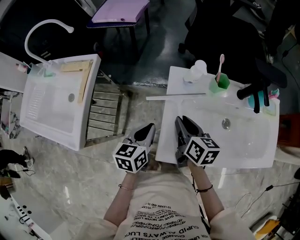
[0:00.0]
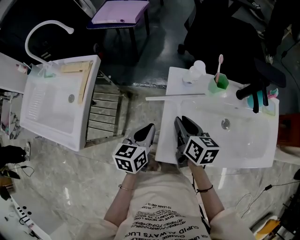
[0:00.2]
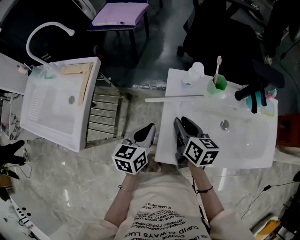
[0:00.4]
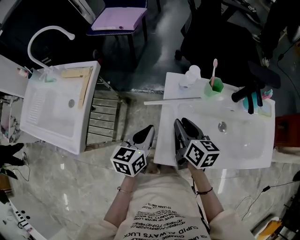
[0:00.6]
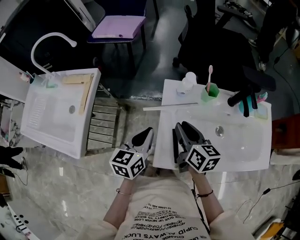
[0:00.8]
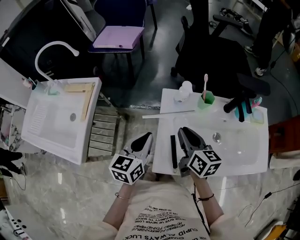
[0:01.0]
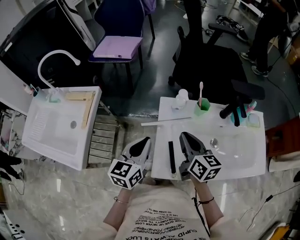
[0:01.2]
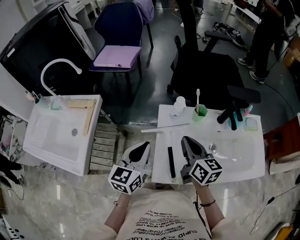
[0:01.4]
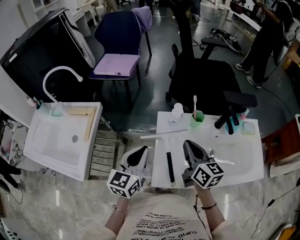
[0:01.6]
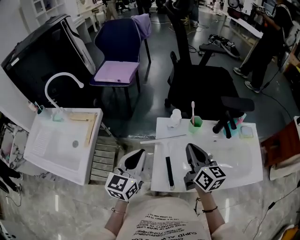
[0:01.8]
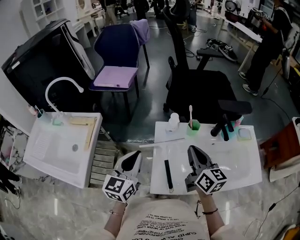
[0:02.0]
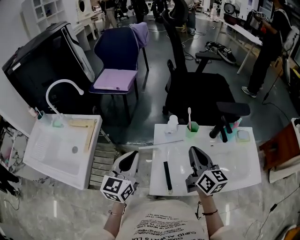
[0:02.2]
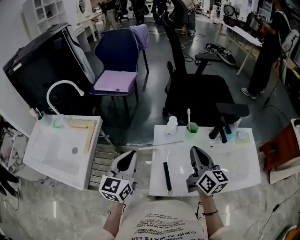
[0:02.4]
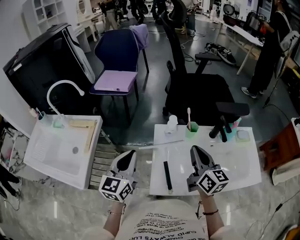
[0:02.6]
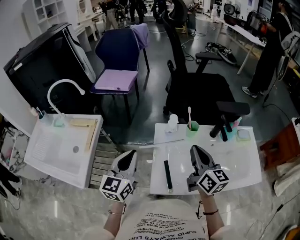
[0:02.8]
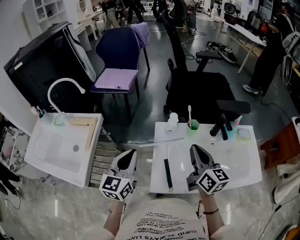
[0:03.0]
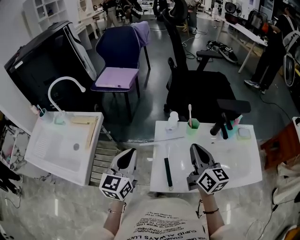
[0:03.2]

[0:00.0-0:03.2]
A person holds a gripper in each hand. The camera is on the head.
0:00.0 to 0:01.6: The right gripper goes some 15 cm upward and to the right, rotates approximately 20 degrees, and closes its fingers. The left gripper heads upward, covering roughly 15 cm, and swivels approximately 30 degrees.
0:01.6 to 0:03.2: The right gripper moves approximately 5 cm.

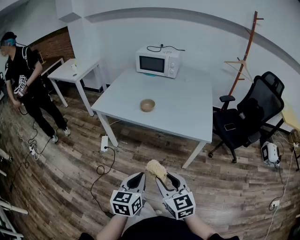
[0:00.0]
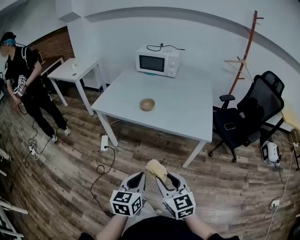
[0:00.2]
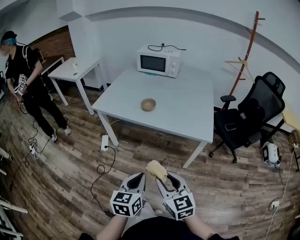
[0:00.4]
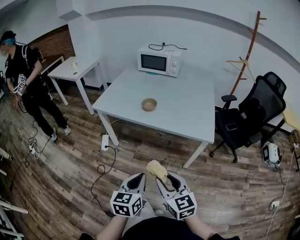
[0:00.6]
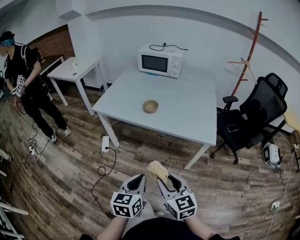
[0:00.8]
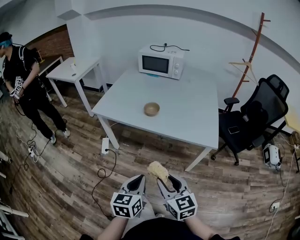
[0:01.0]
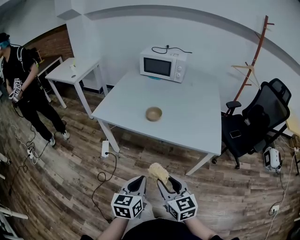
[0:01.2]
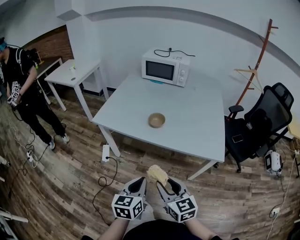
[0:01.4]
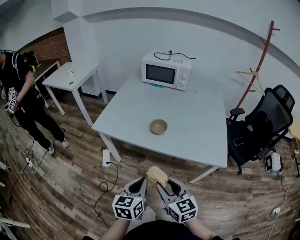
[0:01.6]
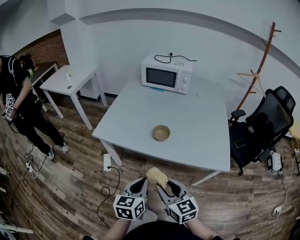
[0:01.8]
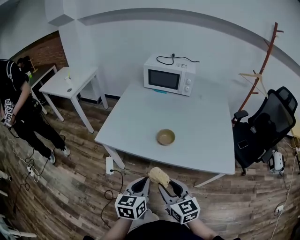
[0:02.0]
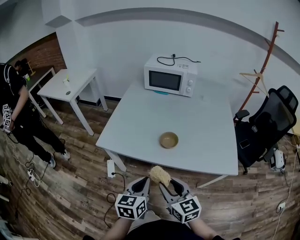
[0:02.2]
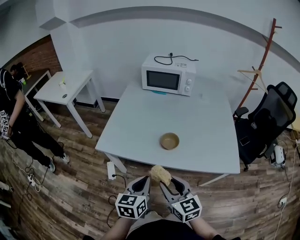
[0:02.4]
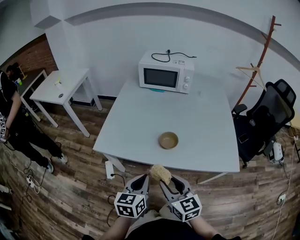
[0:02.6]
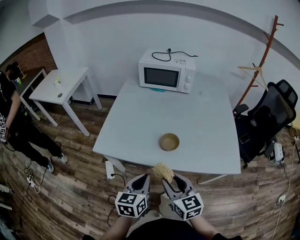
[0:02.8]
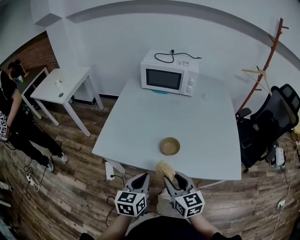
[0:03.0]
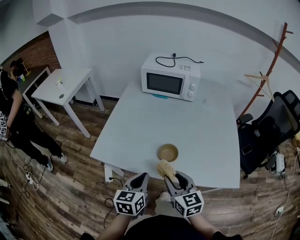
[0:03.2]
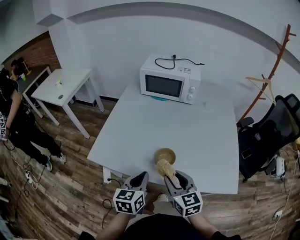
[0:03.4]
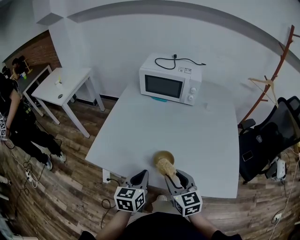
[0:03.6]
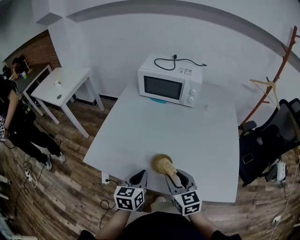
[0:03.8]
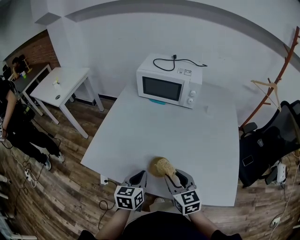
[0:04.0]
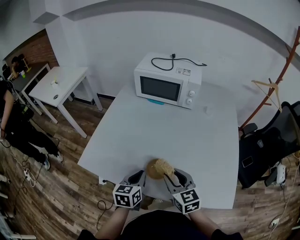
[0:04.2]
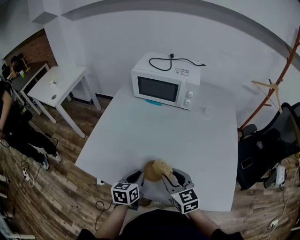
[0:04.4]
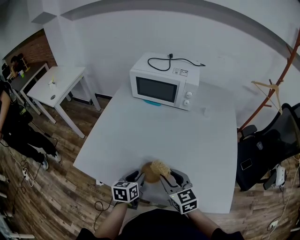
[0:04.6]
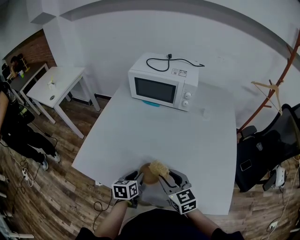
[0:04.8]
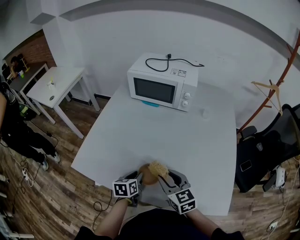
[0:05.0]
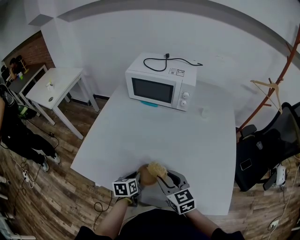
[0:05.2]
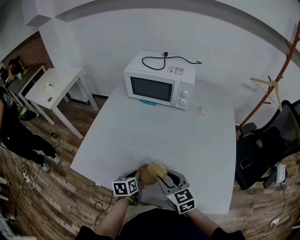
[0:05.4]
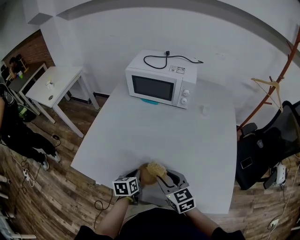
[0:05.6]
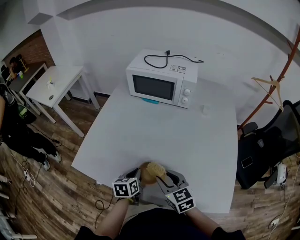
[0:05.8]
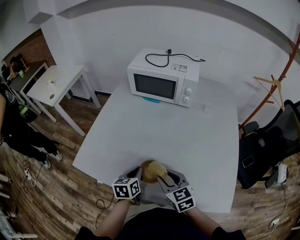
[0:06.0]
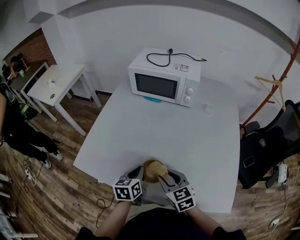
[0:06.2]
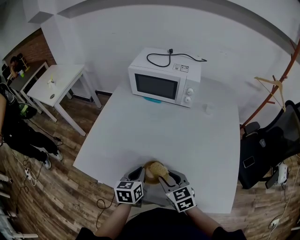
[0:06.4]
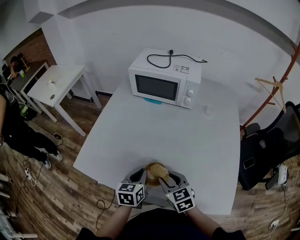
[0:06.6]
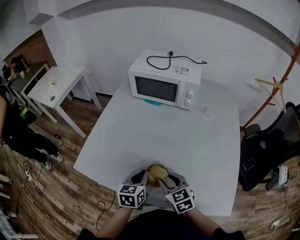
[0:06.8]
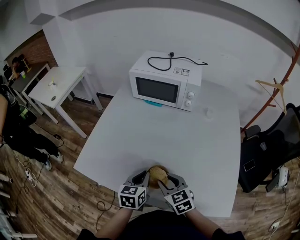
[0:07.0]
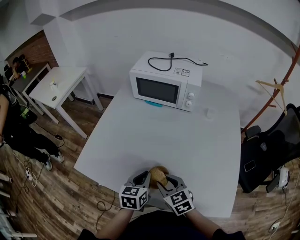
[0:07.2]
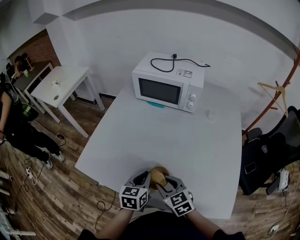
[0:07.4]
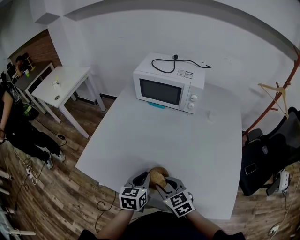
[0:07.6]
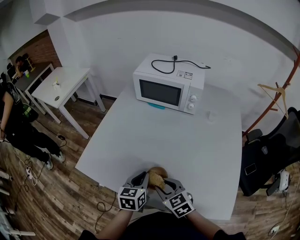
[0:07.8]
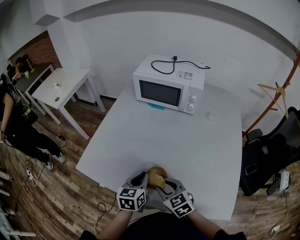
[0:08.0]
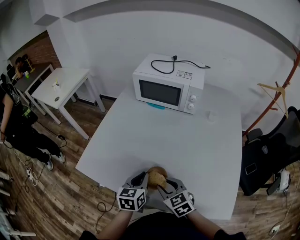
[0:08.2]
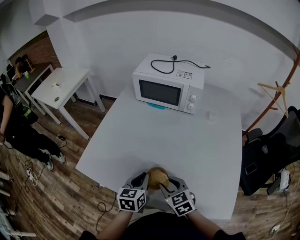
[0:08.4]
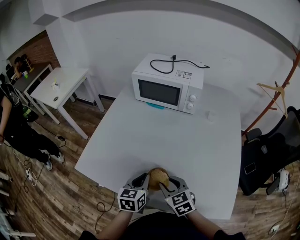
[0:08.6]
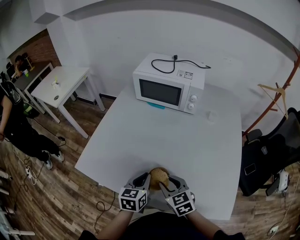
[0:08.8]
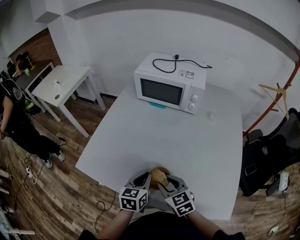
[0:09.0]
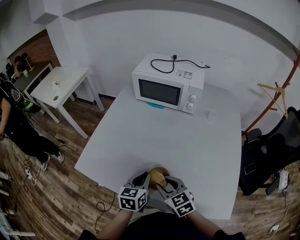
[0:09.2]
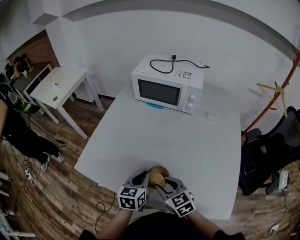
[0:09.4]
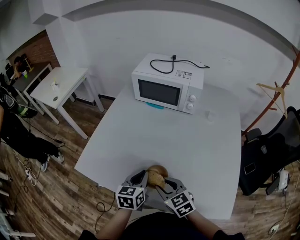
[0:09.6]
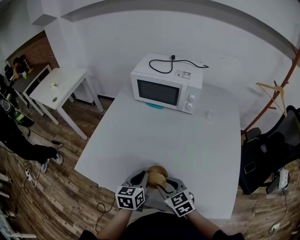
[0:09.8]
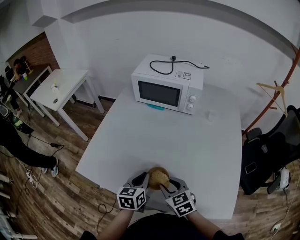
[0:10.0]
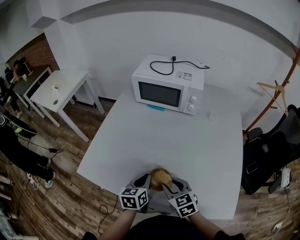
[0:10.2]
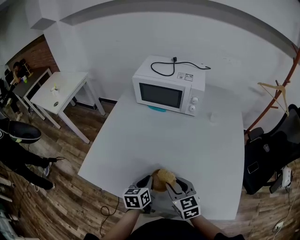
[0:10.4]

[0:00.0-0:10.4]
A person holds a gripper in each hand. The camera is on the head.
0:00.0 to 0:01.4: The left gripper heads forward and to the left, covering some 15 cm, while the right gripper heads forward, covering approximately 15 cm.
0:01.4 to 0:03.0: Both grippers move forward, some 25 cm.
0:03.0 to 0:04.4: The right gripper moves forward and to the right, roughly 20 cm, while the left gripper travels forward, downward and to the right by roughly 20 cm.
0:04.4 to 0:06.0: The left gripper opens, then closes once more.
0:06.0 to 0:07.4: The left gripper changes place by about 5 cm.
0:07.4 to 0:10.4: The grippers stay close to where they were, moving slightly.

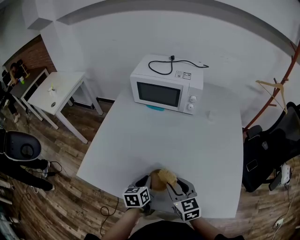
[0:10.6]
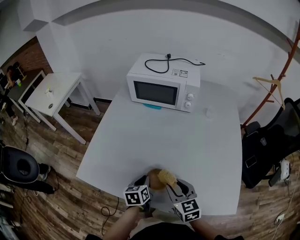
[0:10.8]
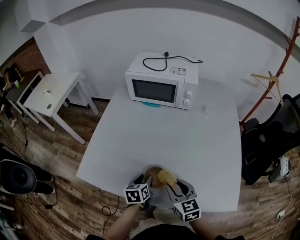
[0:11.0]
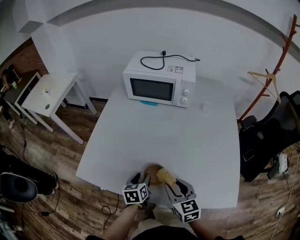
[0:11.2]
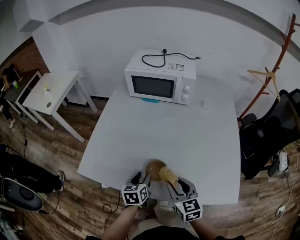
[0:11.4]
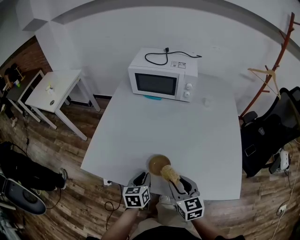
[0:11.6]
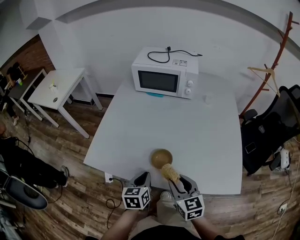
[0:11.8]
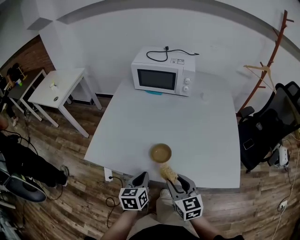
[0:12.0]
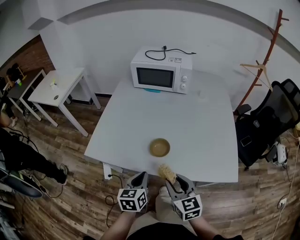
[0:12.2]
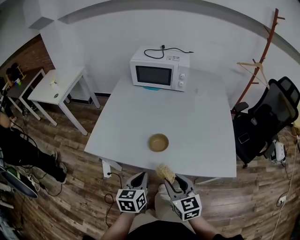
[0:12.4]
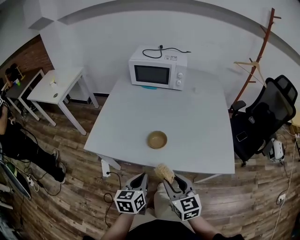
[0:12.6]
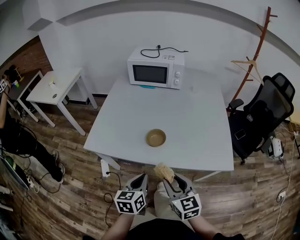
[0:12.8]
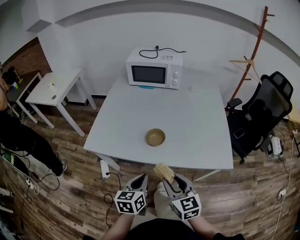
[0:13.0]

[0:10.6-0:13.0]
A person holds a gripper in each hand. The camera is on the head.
0:10.6 to 0:11.8: The two grippers go about 10 cm backward. The left gripper opens and closes again.
0:11.8 to 0:13.0: Both grippers travel together backward, about 15 cm.

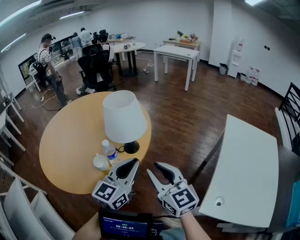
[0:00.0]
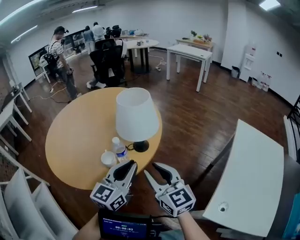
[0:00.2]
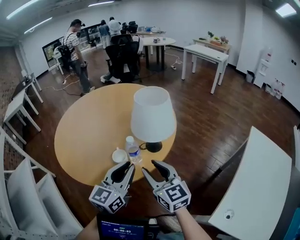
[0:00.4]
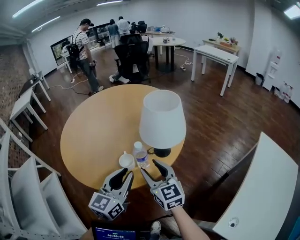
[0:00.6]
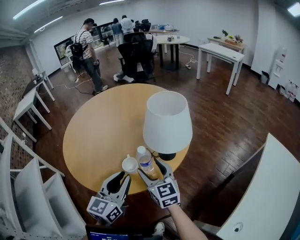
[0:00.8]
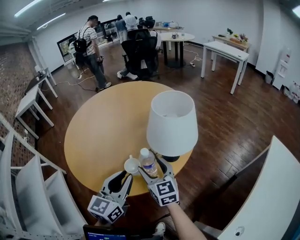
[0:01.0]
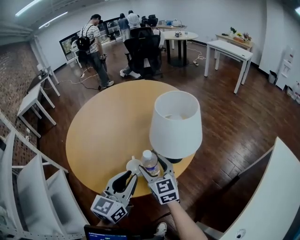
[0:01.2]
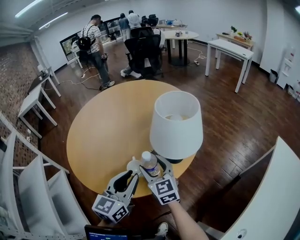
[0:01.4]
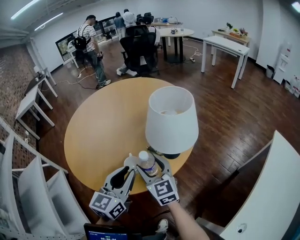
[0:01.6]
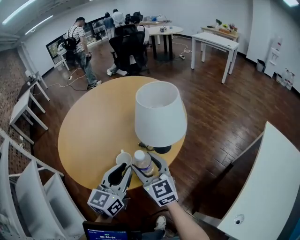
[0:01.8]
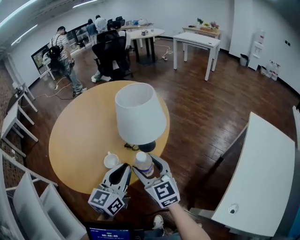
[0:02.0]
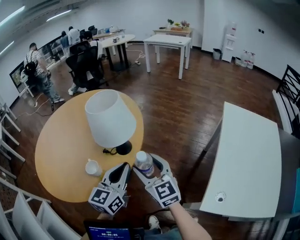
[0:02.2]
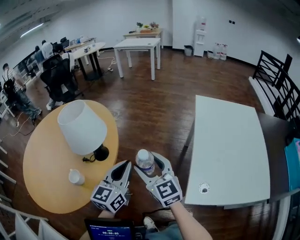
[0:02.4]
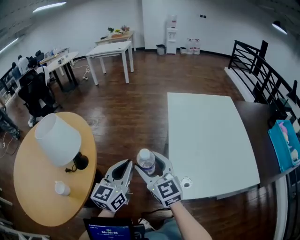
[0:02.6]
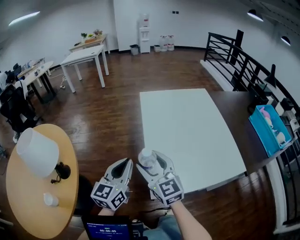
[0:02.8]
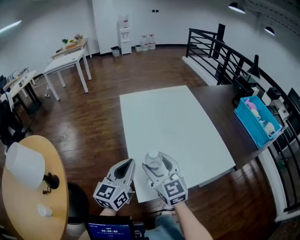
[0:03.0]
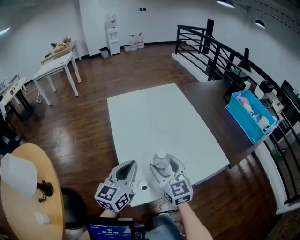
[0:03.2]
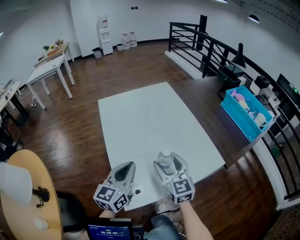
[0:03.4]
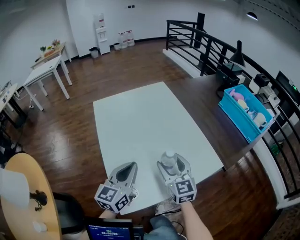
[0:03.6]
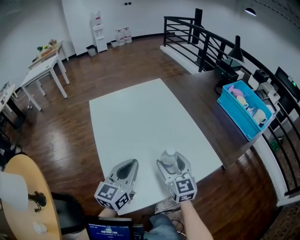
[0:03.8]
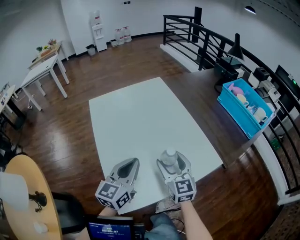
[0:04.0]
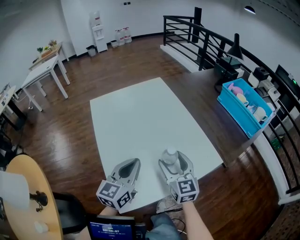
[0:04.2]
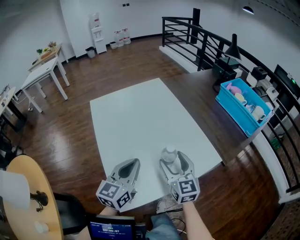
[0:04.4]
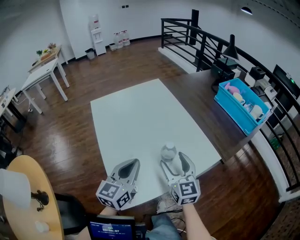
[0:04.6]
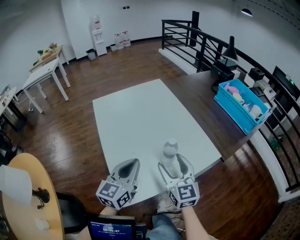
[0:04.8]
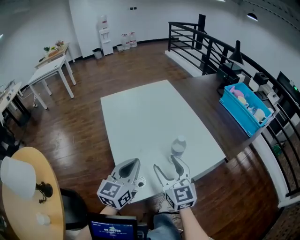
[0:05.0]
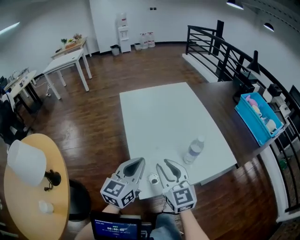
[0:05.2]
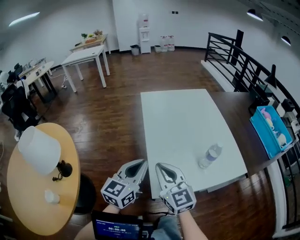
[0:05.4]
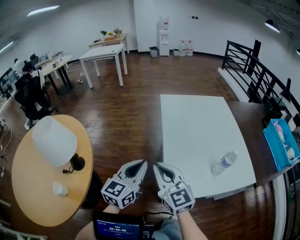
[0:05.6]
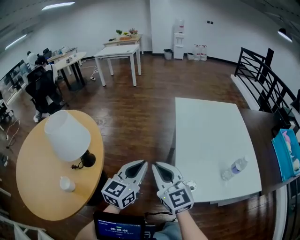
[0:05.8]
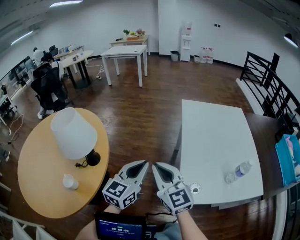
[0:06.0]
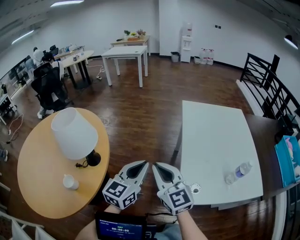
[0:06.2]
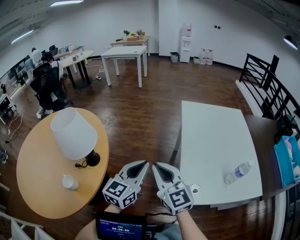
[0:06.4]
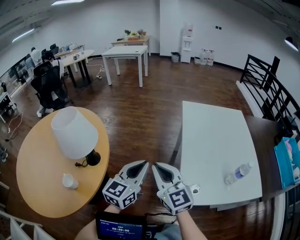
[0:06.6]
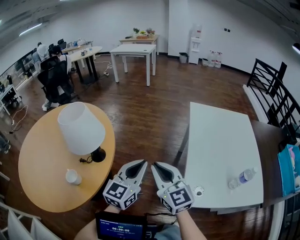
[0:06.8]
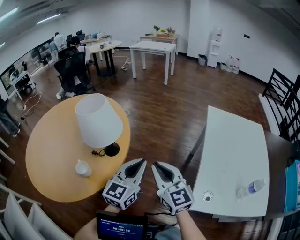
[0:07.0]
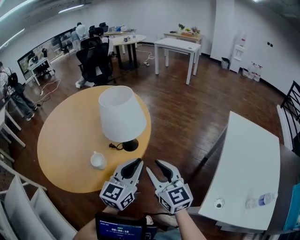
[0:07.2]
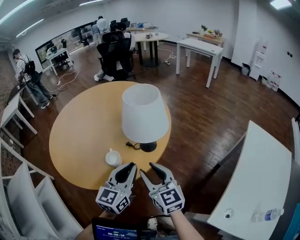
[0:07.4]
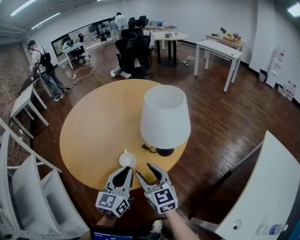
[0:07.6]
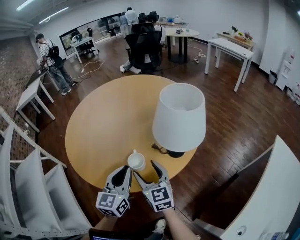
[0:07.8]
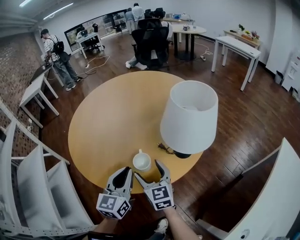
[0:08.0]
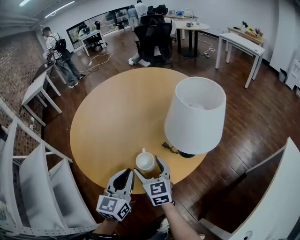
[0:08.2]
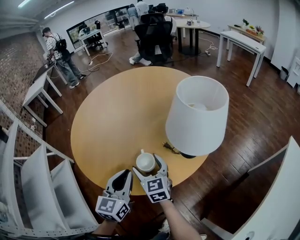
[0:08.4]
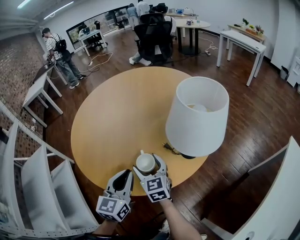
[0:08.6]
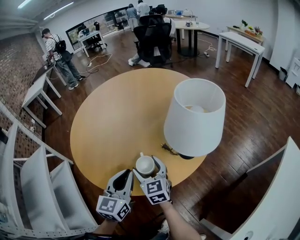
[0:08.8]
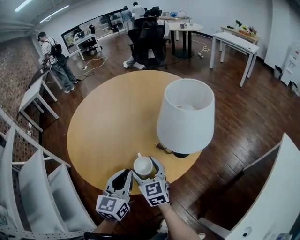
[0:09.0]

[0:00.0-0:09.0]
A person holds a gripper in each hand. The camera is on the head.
0:00.0 to 0:01.6: The right gripper travels to the left, forward and downward by approximately 25 cm, and opens its fingers; the left gripper travels to the left and forward by about 20 cm, and turns by approximately 20 degrees.
0:01.6 to 0:03.0: The two grippers travel together, roughly 60 cm. The right gripper turns by about 70 degrees; the left gripper swivels about 60 degrees.
0:03.0 to 0:04.4: The right gripper shifts some 20 cm to the right, and rotates approximately 20 degrees, while the left gripper goes roughly 15 cm to the right and forward.
0:04.4 to 0:06.0: The left gripper ends up roughly 35 cm from where it was, and swivels about 30 degrees, while the right gripper ends up some 50 cm from where it was, changes its angle by some 50 degrees, and closes its fingers.
0:06.0 to 0:07.6: The left gripper shifts by some 40 cm, and swivels roughly 50 degrees. The right gripper ends up approximately 35 cm from where it was, swivels roughly 40 degrees, and opens.
0:07.6 to 0:09.0: The right gripper travels to the left, forward and downward by about 15 cm, and opens its fingers. Meanwhile the left gripper is displaced to the left by roughly 5 cm.
